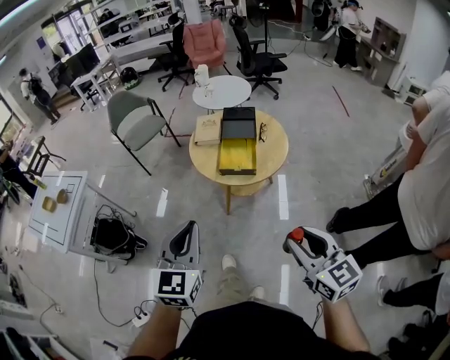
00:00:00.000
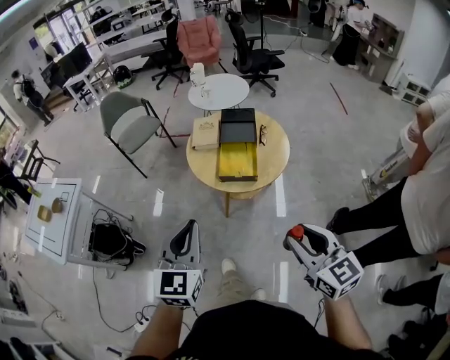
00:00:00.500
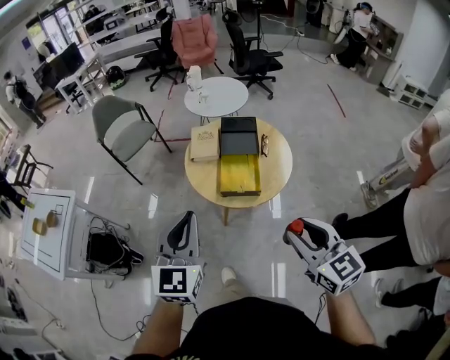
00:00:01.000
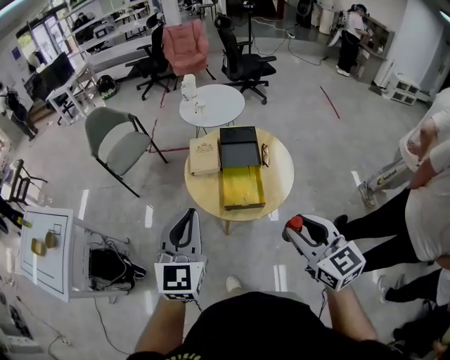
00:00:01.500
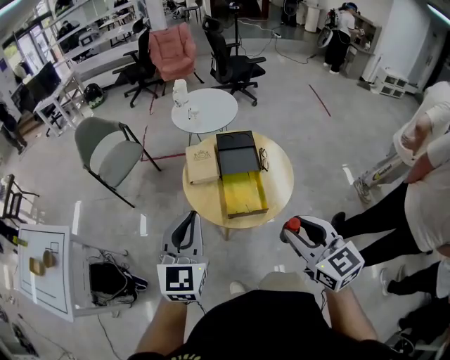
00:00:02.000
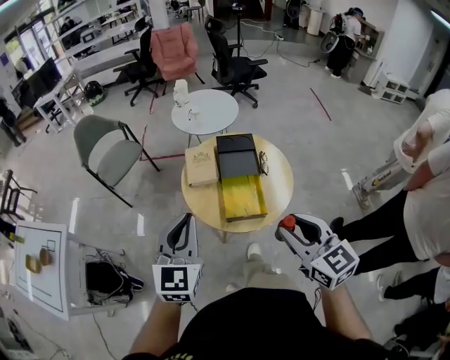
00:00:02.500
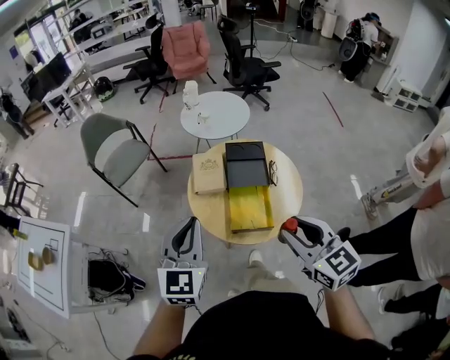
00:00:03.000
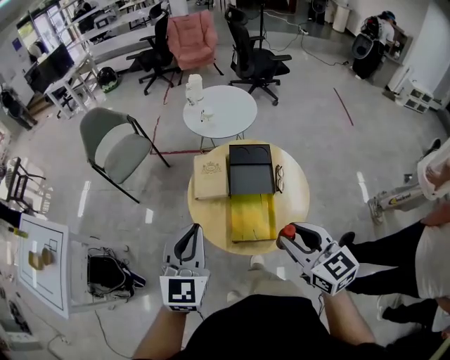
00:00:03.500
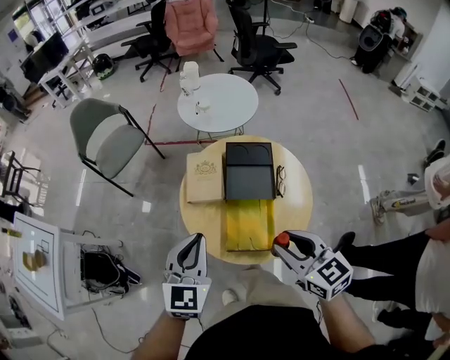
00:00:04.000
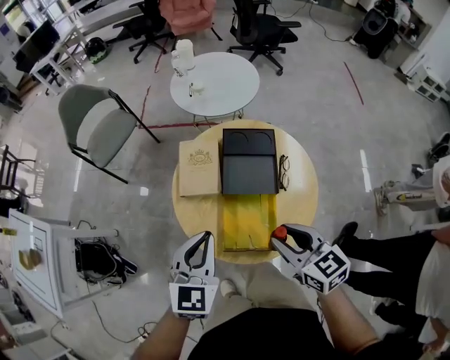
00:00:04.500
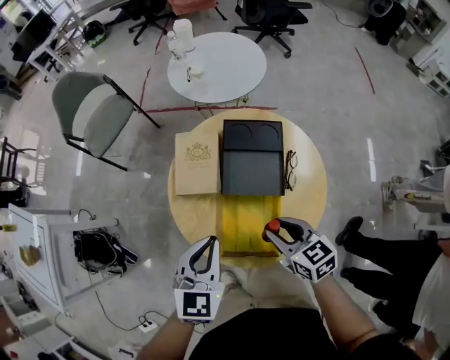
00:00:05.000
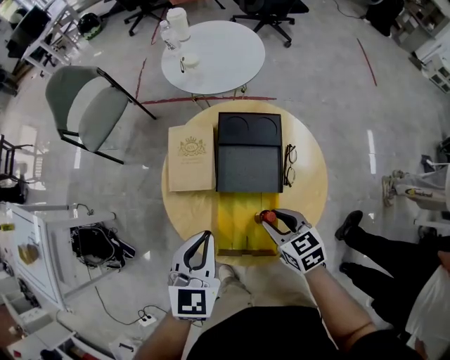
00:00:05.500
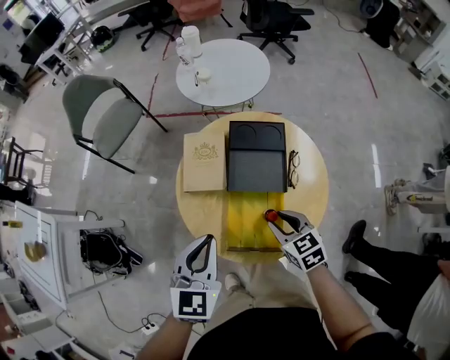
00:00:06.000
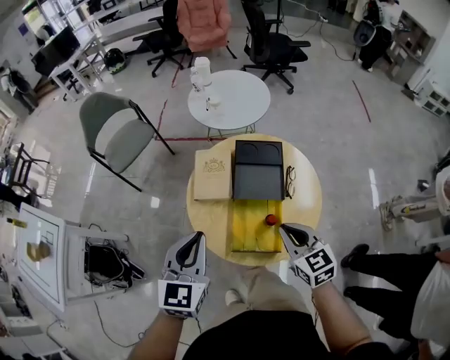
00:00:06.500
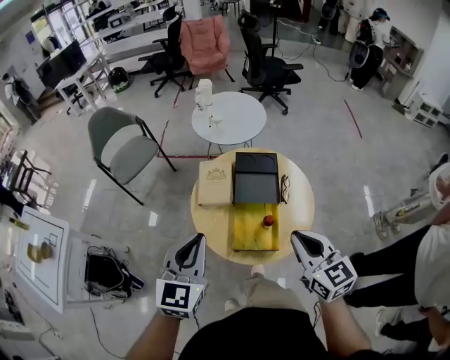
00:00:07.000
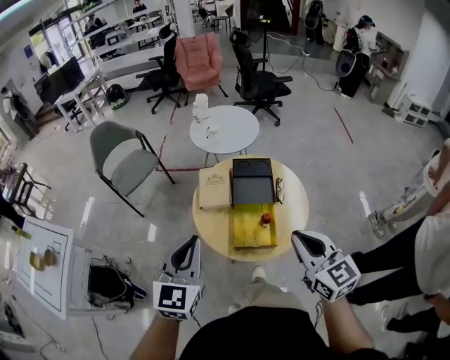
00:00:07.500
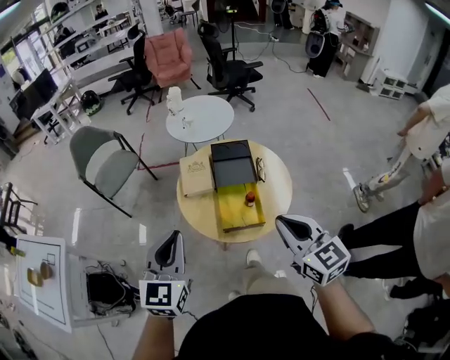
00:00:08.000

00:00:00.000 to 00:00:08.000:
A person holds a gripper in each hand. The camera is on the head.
00:00:00.000 to 00:00:02.000: The grippers both shift forward by roughly 30 cm.
00:00:02.000 to 00:00:04.000: The left gripper shifts about 20 cm forward, downward and to the right. Meanwhile the right gripper travels forward and downward by about 25 cm.
00:00:04.000 to 00:00:06.000: The right gripper moves downward and forward, approximately 20 cm. Meanwhile the left gripper is displaced downward by some 10 cm.
00:00:06.000 to 00:00:08.000: The right gripper moves upward and backward, some 40 cm, swivels roughly 30 degrees, and closes up, while the left gripper travels upward, backward and to the left by roughly 25 cm.

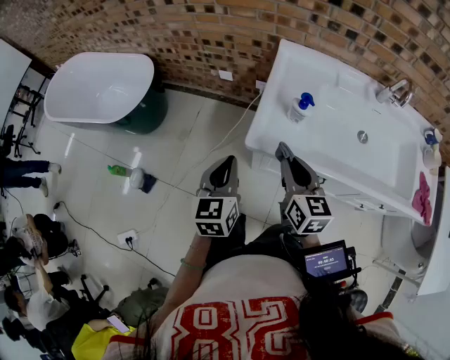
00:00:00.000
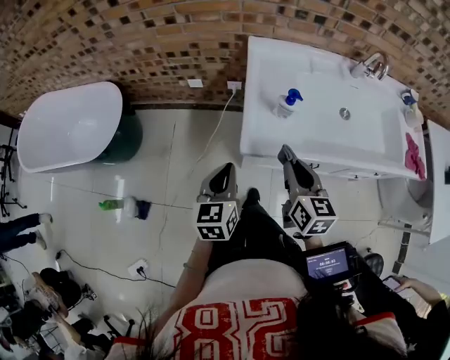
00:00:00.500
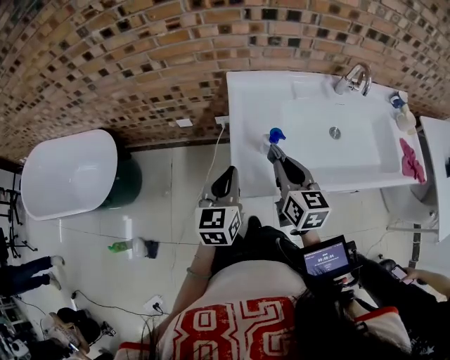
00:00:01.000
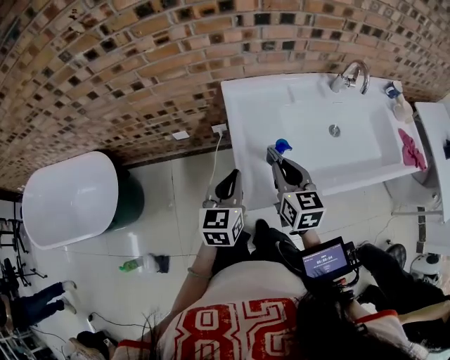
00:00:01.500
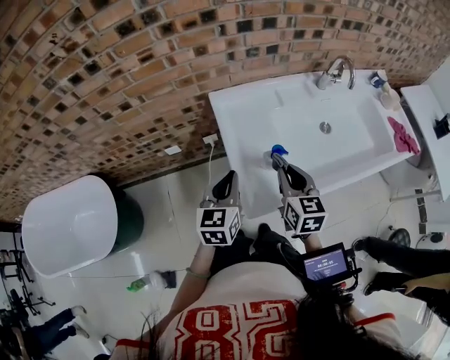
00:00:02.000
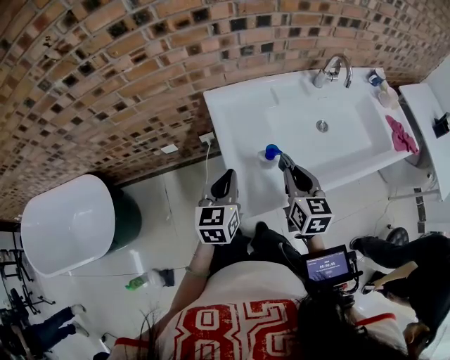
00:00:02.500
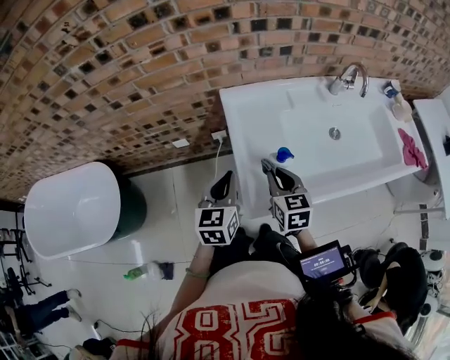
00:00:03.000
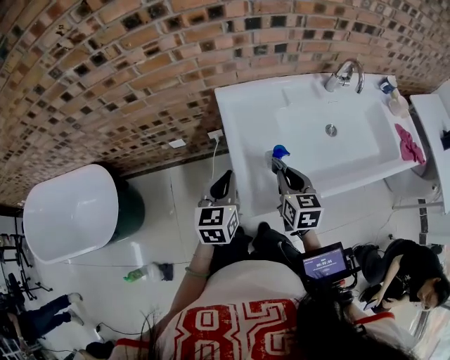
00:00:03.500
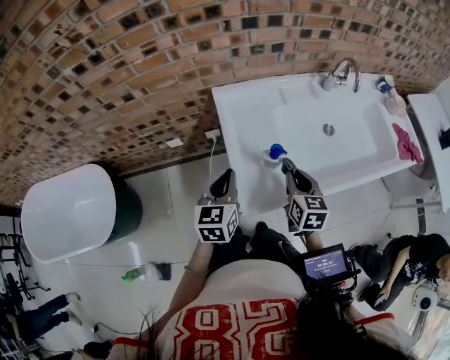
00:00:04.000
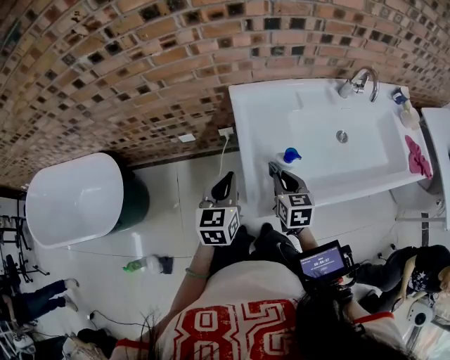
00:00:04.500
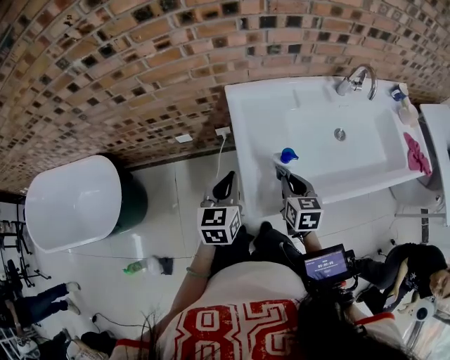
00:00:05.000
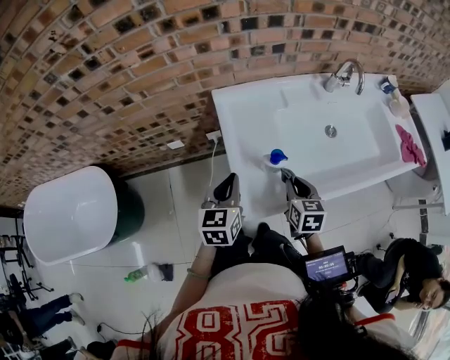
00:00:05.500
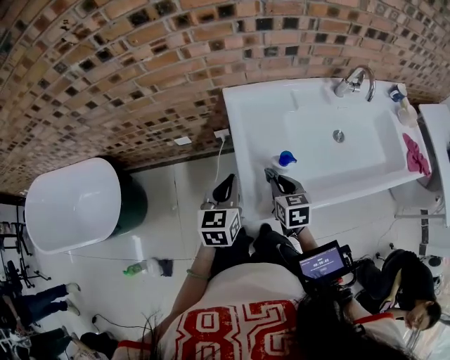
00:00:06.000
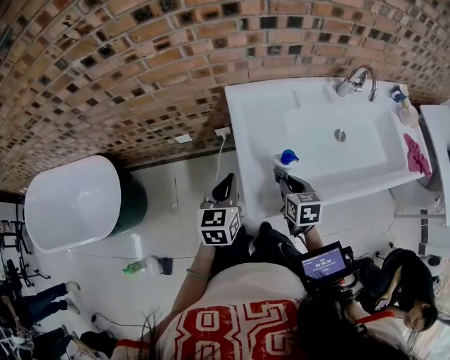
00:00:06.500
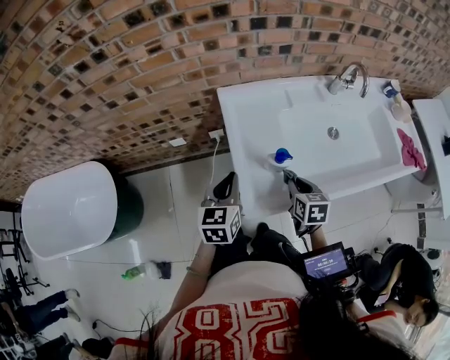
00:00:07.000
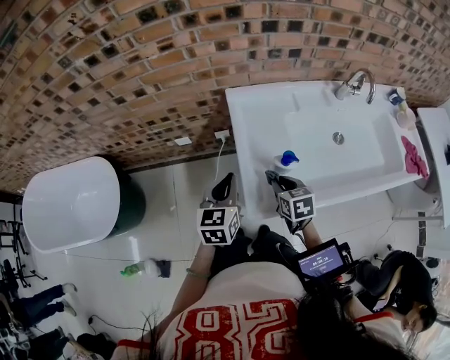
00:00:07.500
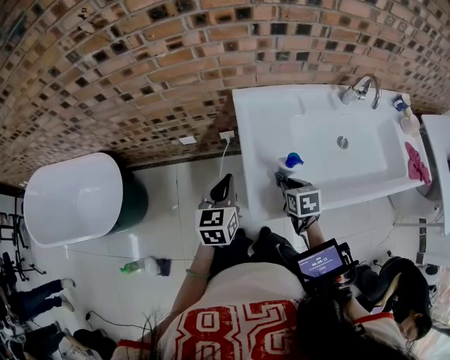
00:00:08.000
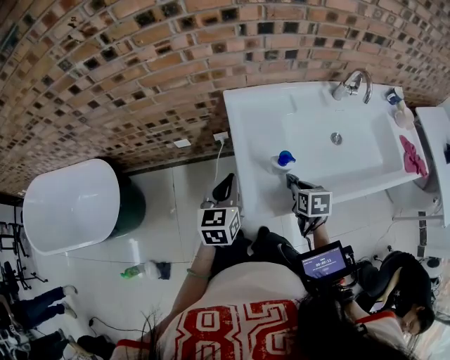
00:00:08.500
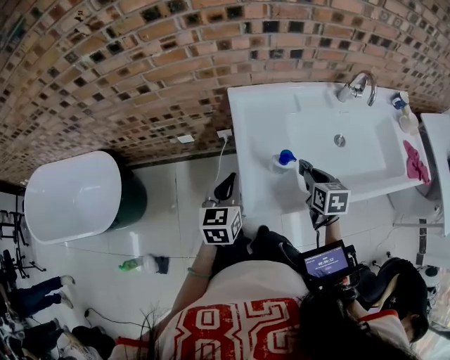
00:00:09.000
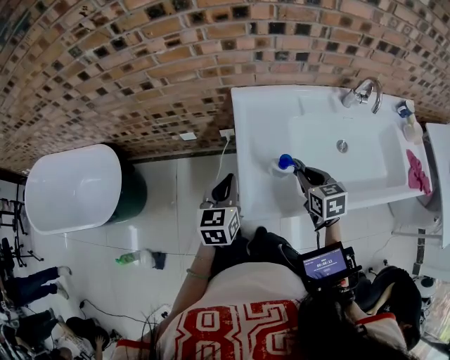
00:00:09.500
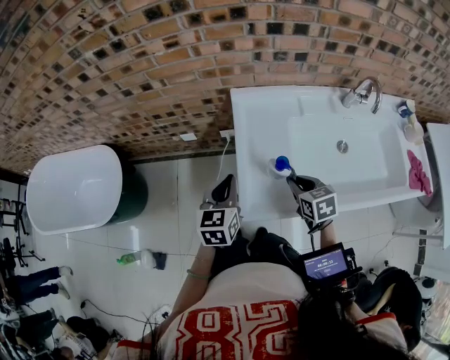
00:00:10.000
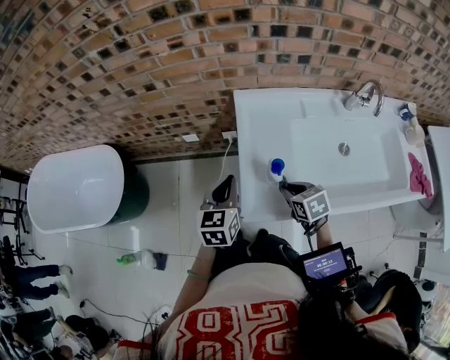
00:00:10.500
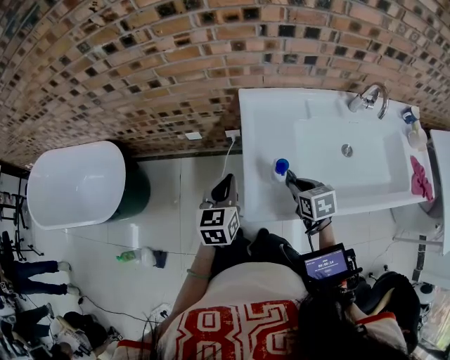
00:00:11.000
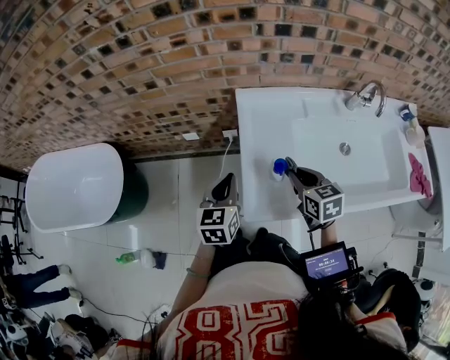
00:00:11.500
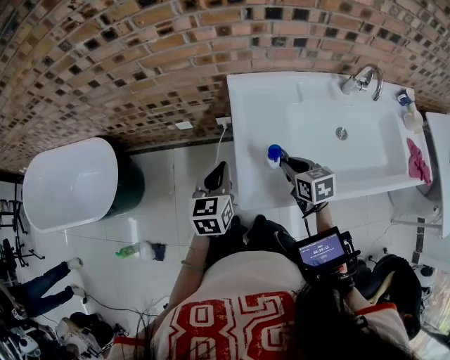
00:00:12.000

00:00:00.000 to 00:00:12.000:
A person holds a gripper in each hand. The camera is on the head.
00:00:00.000 to 00:00:02.000: The left gripper changes place by about 20 cm, and swivels about 30 degrees, while the right gripper shifts by roughly 15 cm, and rotates approximately 30 degrees.
00:00:02.000 to 00:00:04.000: The right gripper moves approximately 5 cm.
00:00:04.000 to 00:00:06.000: The right gripper swings left and right, approximately 10 cm each way, with 2 reversals.
00:00:06.000 to 00:00:08.000: The right gripper reaches some 10 cm to the right, then returns.
00:00:10.000 to 00:00:12.000: The right gripper travels upward and back again, roughly 5 cm each way.

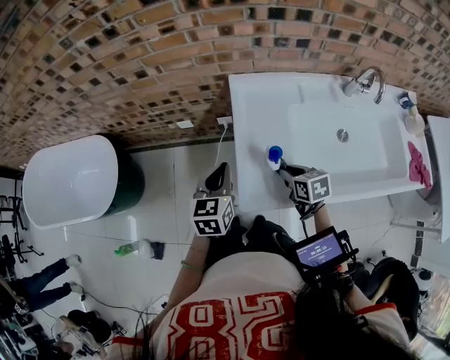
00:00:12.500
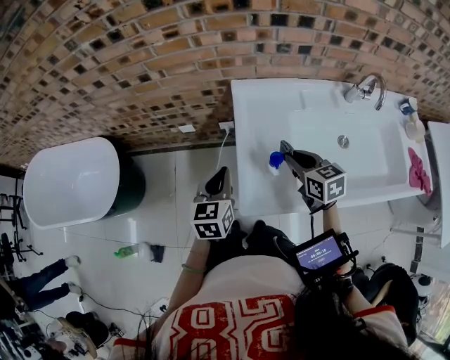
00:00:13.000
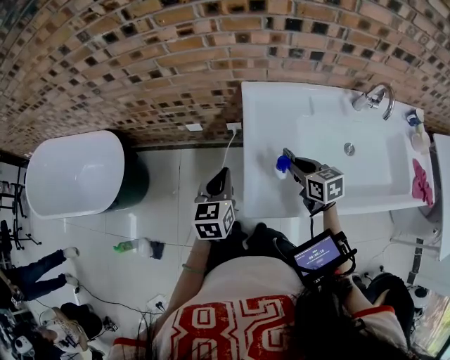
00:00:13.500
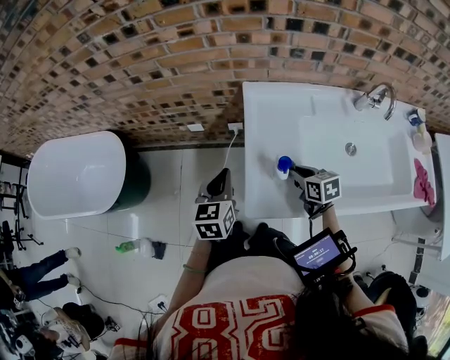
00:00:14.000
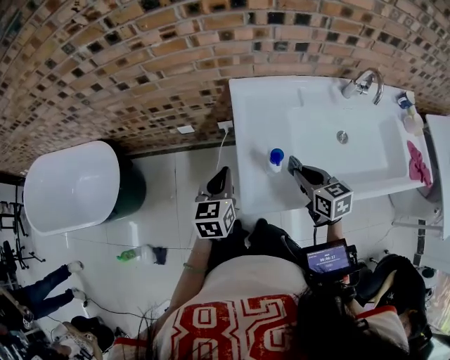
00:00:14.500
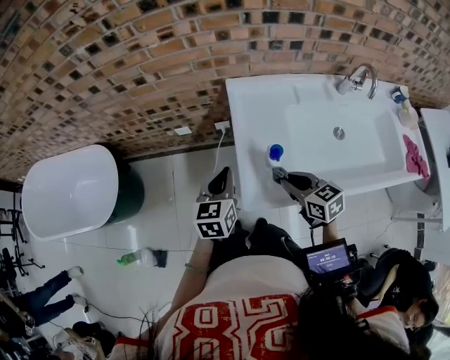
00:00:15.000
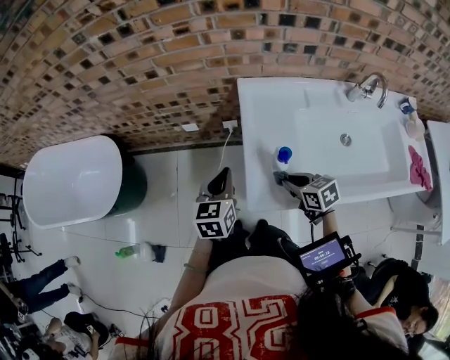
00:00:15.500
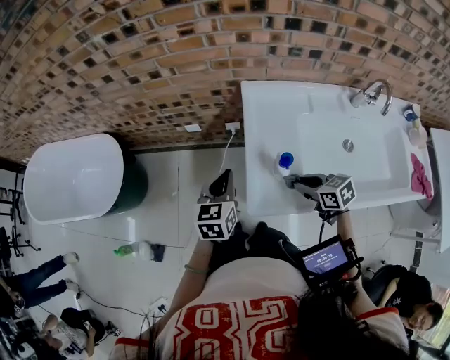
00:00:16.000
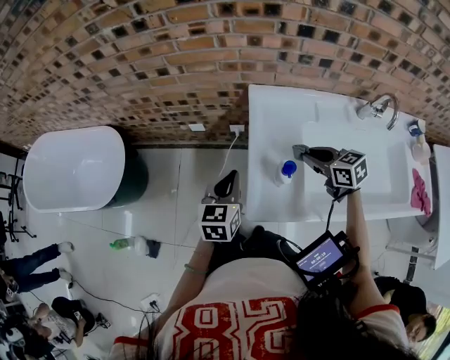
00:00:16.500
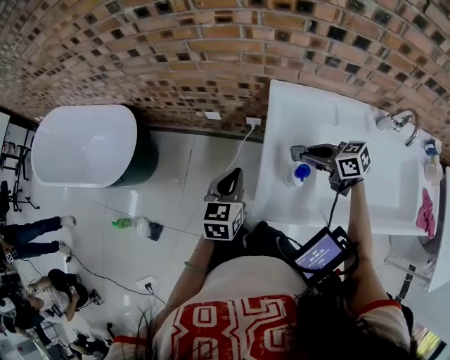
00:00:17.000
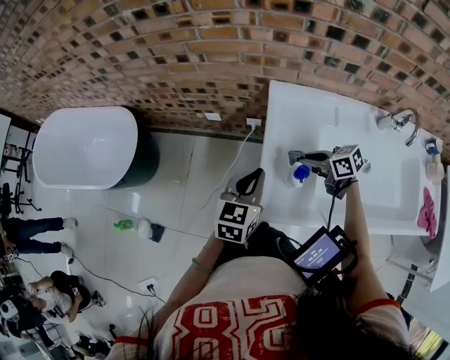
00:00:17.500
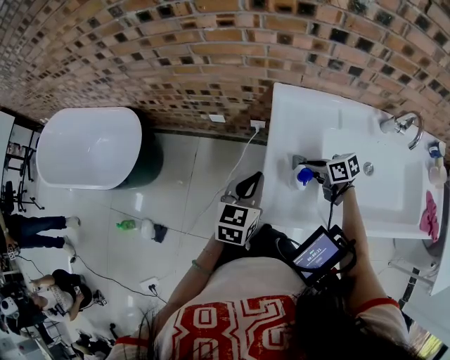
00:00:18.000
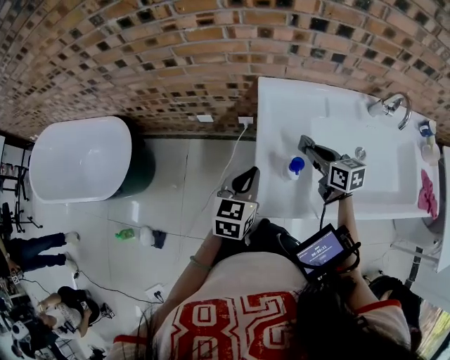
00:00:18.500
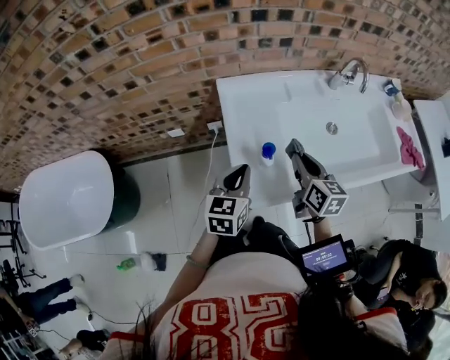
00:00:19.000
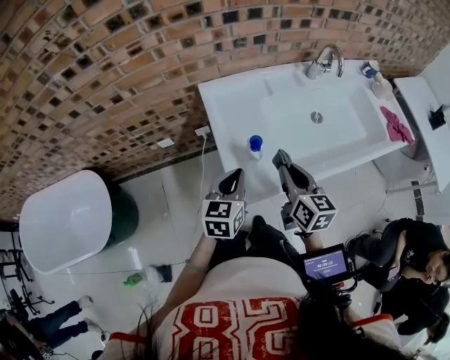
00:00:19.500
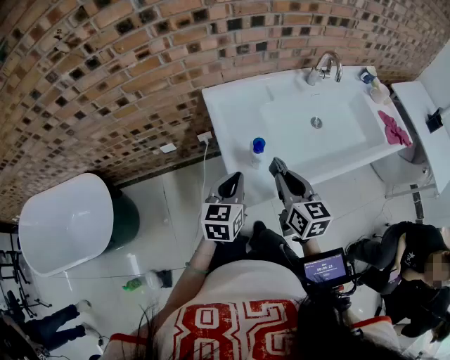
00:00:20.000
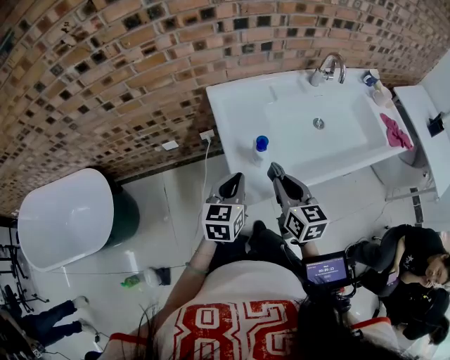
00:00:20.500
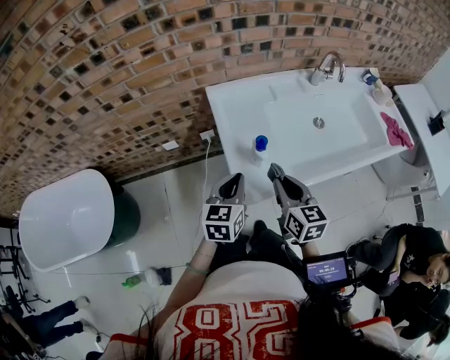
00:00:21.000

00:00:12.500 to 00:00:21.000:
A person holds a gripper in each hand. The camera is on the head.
00:00:12.500 to 00:00:14.500: The right gripper swings up and down, approximately 10 cm each way, with 2 reversals.
00:00:14.500 to 00:00:16.500: The right gripper heads forward, covering about 10 cm, and turns by about 20 degrees.
00:00:16.500 to 00:00:19.000: The right gripper goes downward and returns, about 10 cm each way, and rotates some 50 degrees; the left gripper moves some 10 cm.
00:00:19.000 to 00:00:21.000: The right gripper shifts some 10 cm backward.
